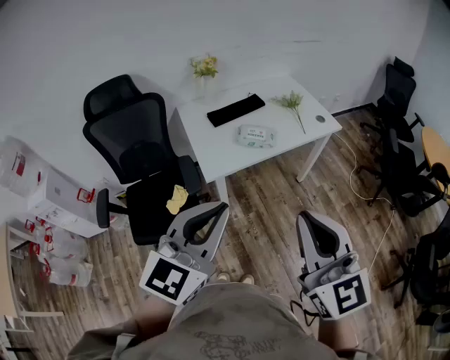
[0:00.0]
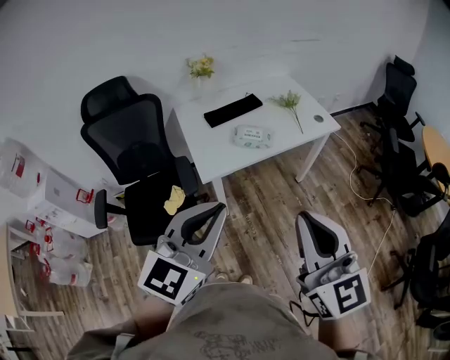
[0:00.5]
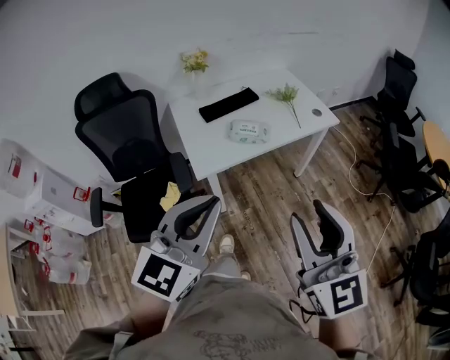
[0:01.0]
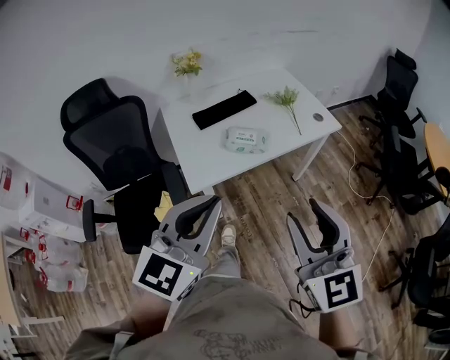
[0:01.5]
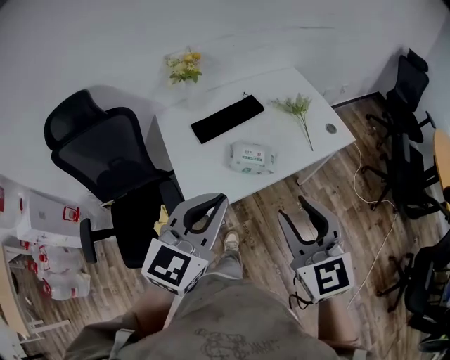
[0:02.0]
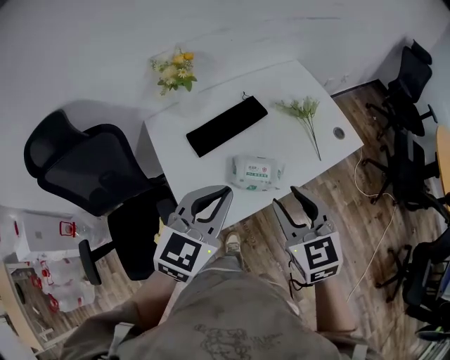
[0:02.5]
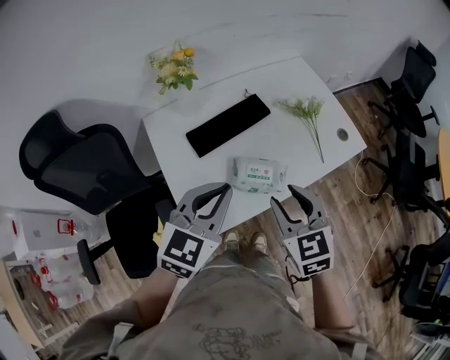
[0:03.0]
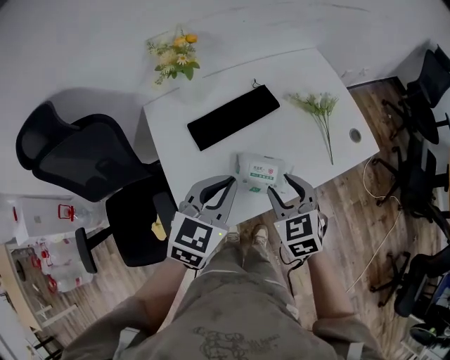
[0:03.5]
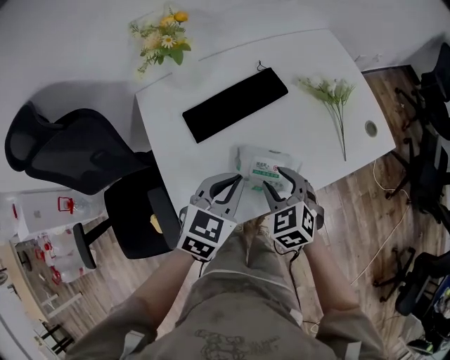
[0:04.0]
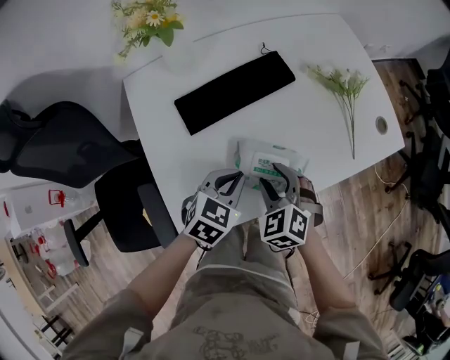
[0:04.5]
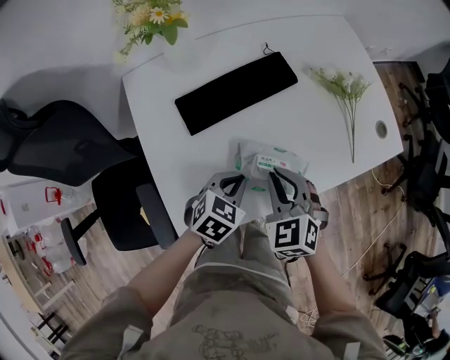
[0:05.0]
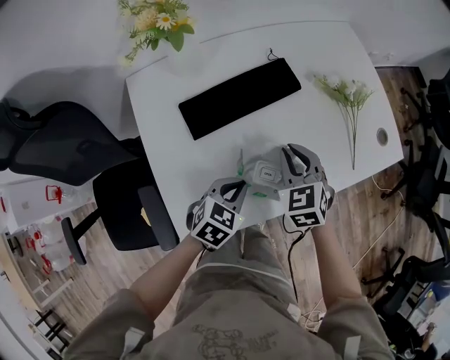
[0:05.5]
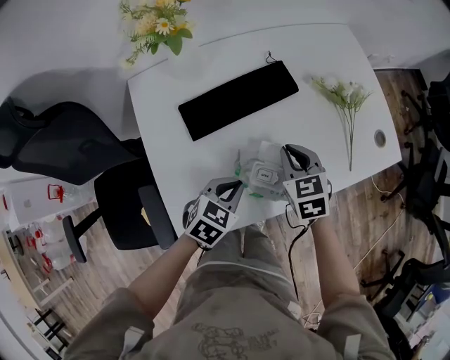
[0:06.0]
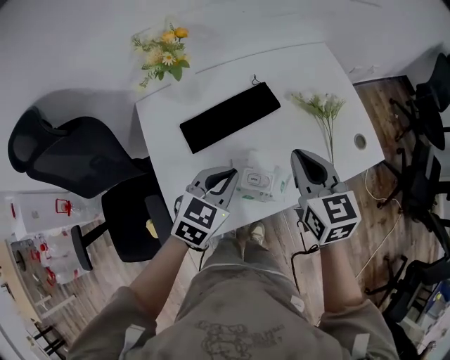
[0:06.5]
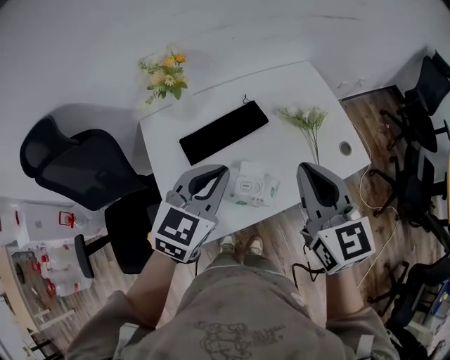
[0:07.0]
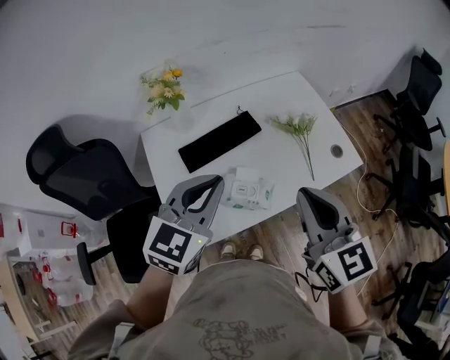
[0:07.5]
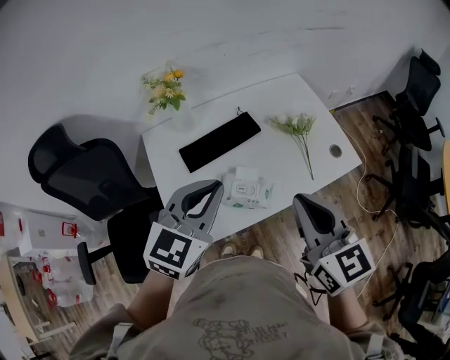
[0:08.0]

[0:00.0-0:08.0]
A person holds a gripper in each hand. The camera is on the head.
0:00.0 to 0:02.0: Both grippers travel together forward, some 25 cm. The right gripper opens.
0:02.0 to 0:04.0: The two grippers go approximately 35 cm downward and forward. The right gripper angles its fingers downward, by roughly 30 degrees. The left gripper rotates about 30 degrees.
0:04.0 to 0:06.0: The left gripper goes about 10 cm downward. The right gripper moves forward, about 10 cm, and closes its fingers.
0:06.0 to 0:08.0: The right gripper travels upward and backward by approximately 35 cm, and tips its fingers upward by some 30 degrees, while the left gripper travels upward by approximately 30 cm, and tips its fingers upward by approximately 30 degrees.

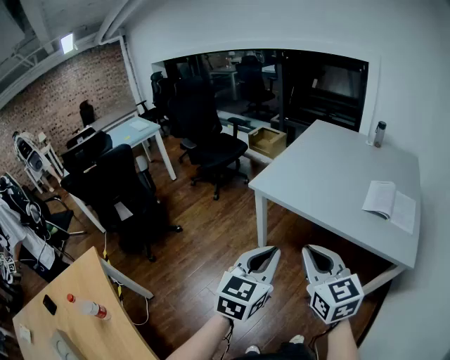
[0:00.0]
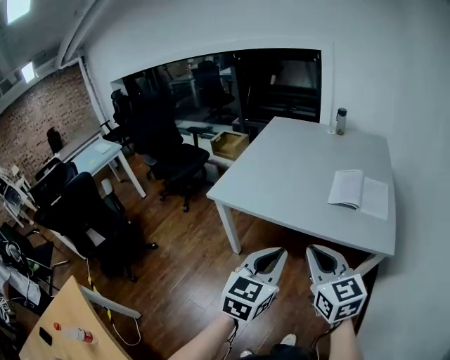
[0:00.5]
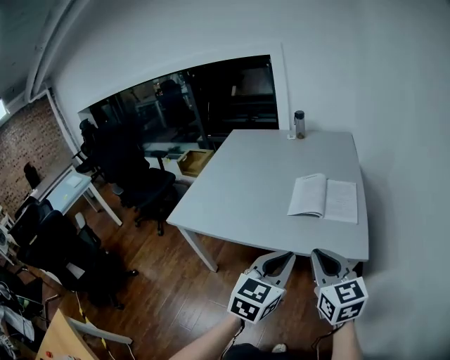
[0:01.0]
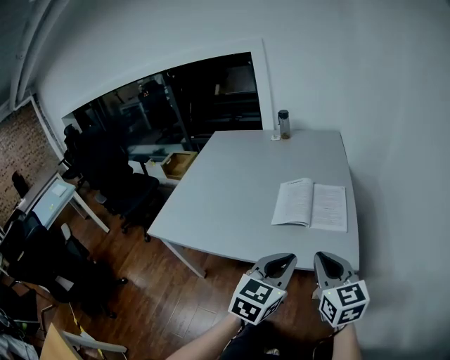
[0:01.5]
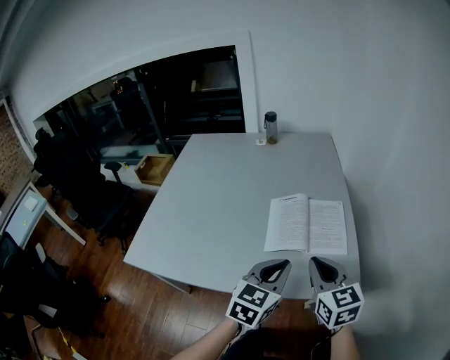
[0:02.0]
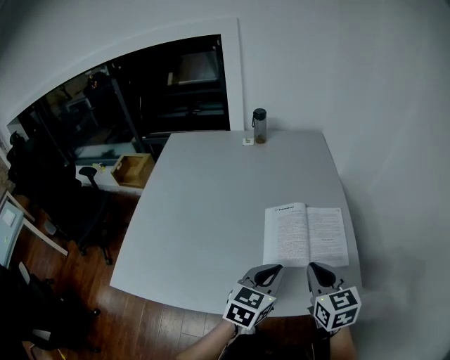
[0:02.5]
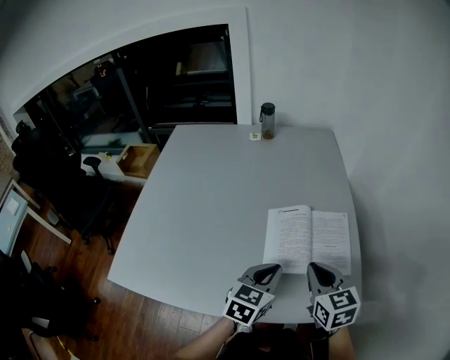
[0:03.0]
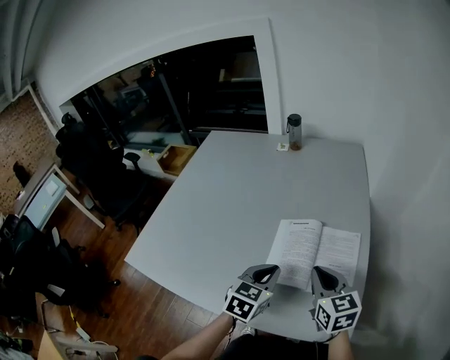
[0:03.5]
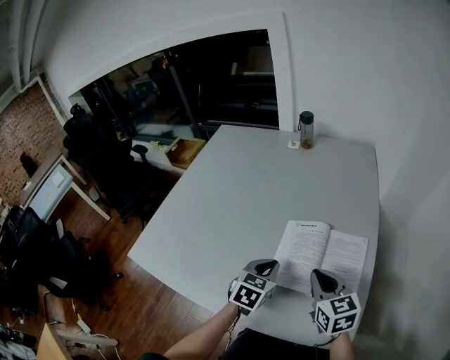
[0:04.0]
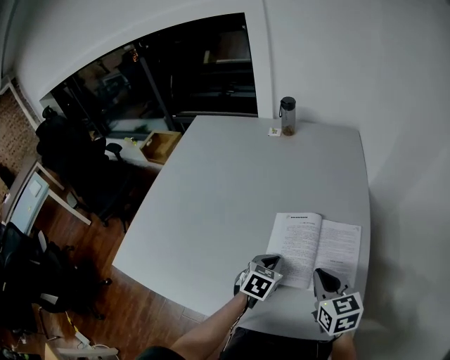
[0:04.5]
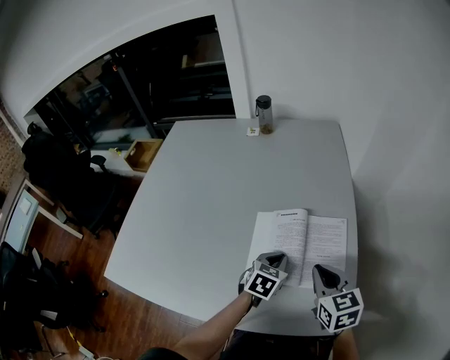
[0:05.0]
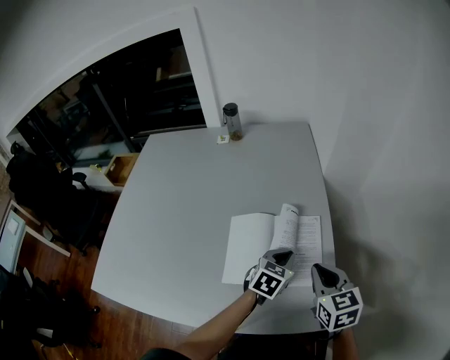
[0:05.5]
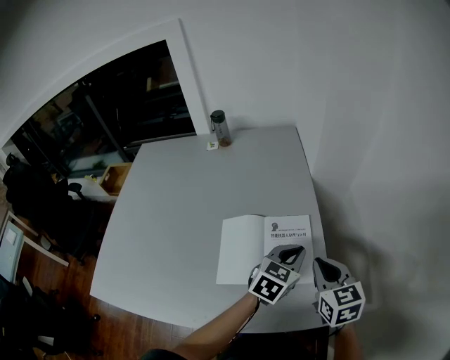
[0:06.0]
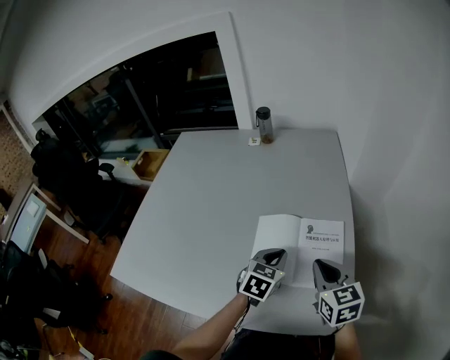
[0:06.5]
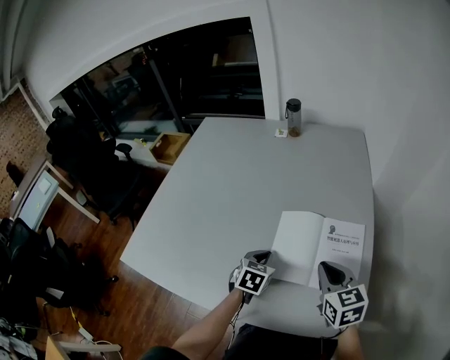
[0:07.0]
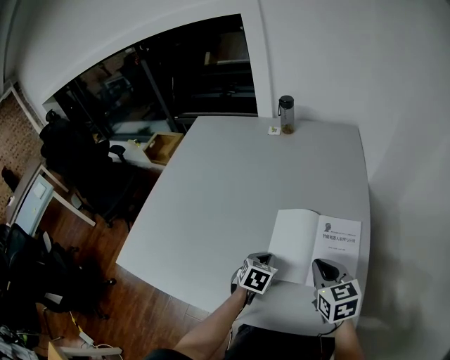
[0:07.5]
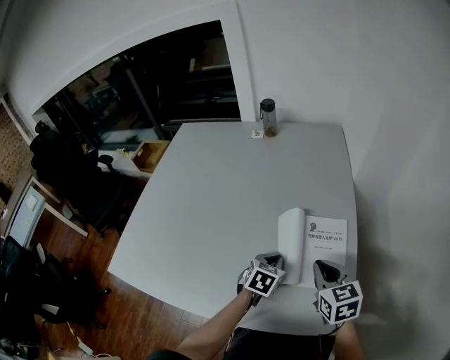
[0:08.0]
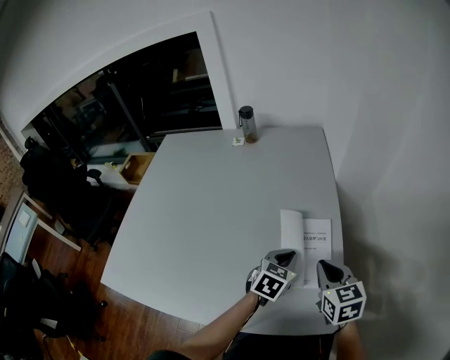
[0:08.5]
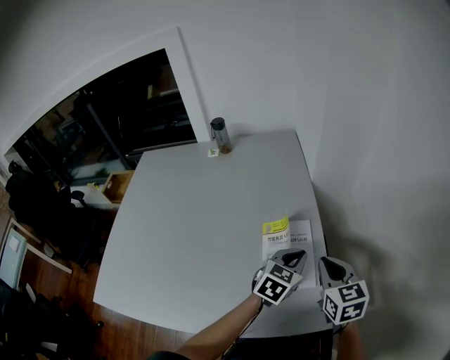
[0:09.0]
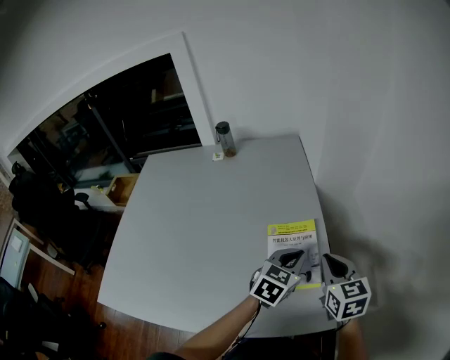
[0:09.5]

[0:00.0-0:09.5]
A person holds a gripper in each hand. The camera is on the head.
0:00.0 to 0:02.0: Both grippers are carried roughly 50 cm. The left gripper rotates approximately 30 degrees. The right gripper rotates about 30 degrees.
0:02.0 to 0:04.0: Both grippers travel together forward and downward, some 20 cm. The left gripper changes its angle by roughly 30 degrees.
0:04.0 to 0:05.5: The left gripper goes about 20 cm to the right, and turns by approximately 20 degrees; the right gripper heads to the right, covering some 15 cm.
0:05.5 to 0:07.5: The right gripper heads to the left, covering about 10 cm. The left gripper heads to the left and downward, covering about 20 cm, and changes its angle by roughly 30 degrees.
0:07.5 to 0:09.5: The left gripper heads to the right and upward, covering approximately 30 cm, and rotates roughly 40 degrees. The right gripper moves to the right, roughly 15 cm, and turns by approximately 20 degrees.

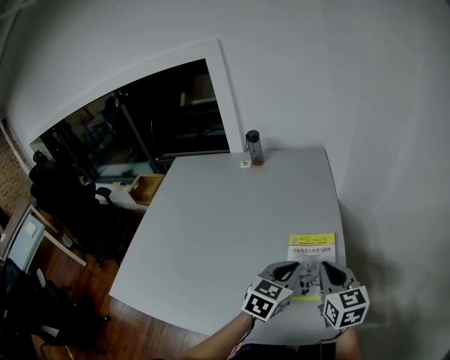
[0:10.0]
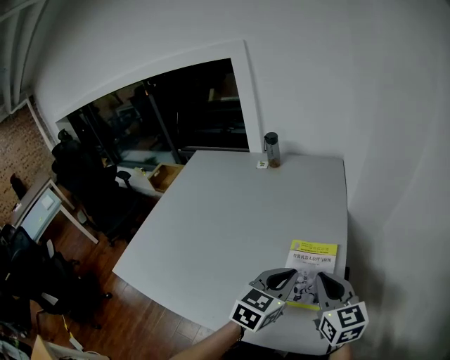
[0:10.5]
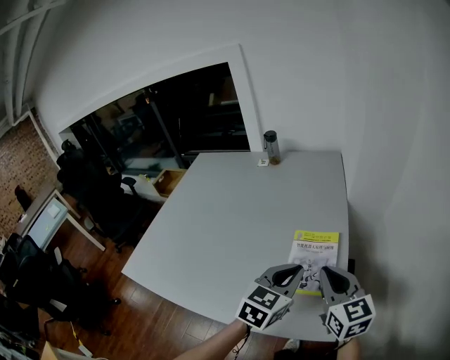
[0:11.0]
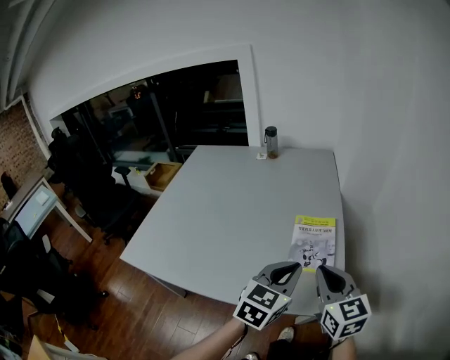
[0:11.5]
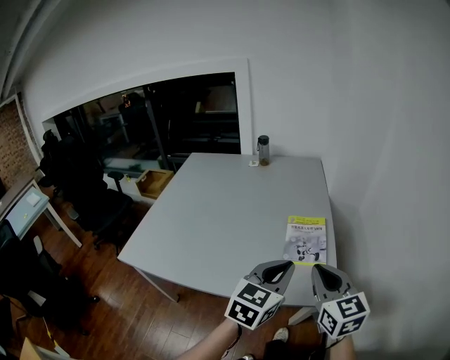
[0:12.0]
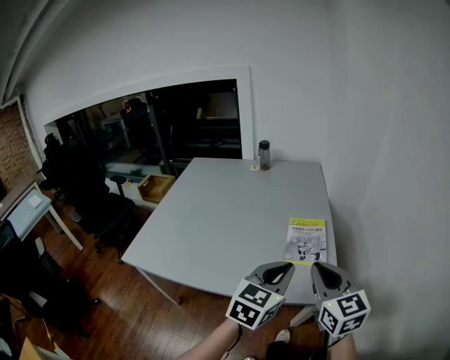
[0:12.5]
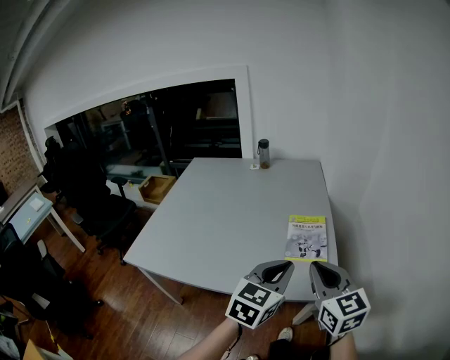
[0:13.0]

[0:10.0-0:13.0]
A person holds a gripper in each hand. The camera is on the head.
0:10.0 to 0:11.5: The left gripper goes about 15 cm backward and upward. The right gripper goes about 15 cm backward.
0:11.5 to 0:13.0: The left gripper goes approximately 10 cm backward. Meanwhile the right gripper moves backward and upward, roughly 10 cm.

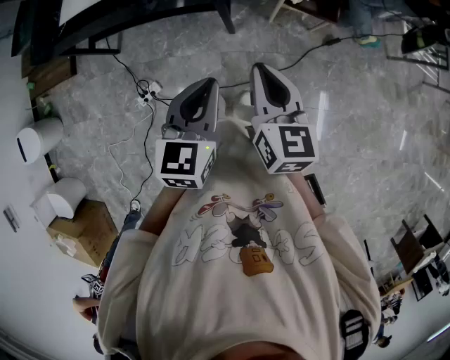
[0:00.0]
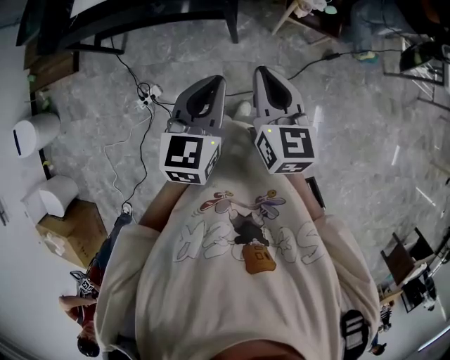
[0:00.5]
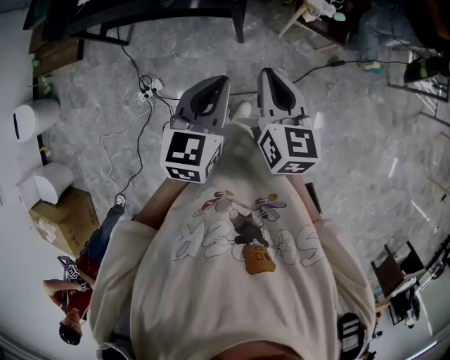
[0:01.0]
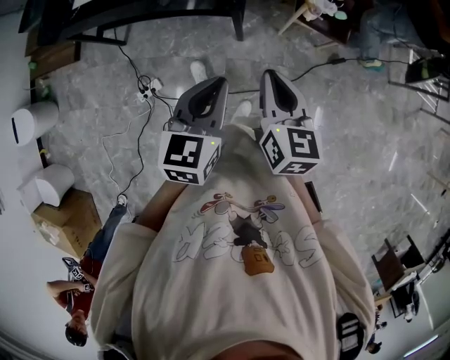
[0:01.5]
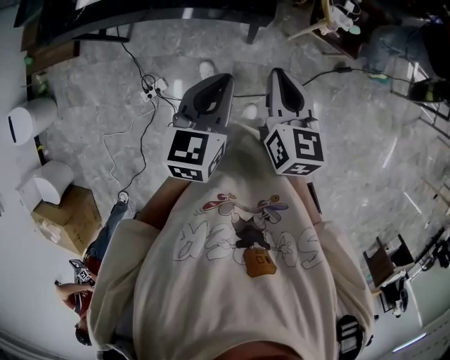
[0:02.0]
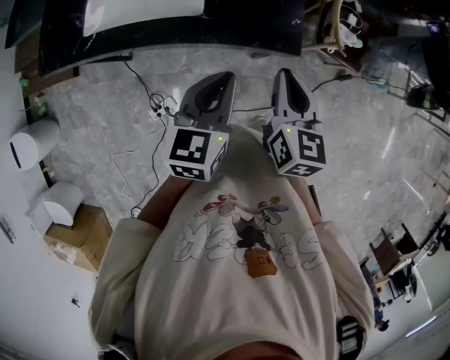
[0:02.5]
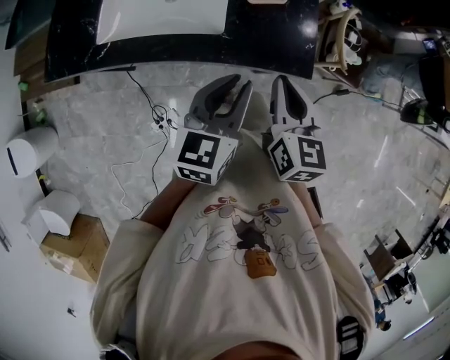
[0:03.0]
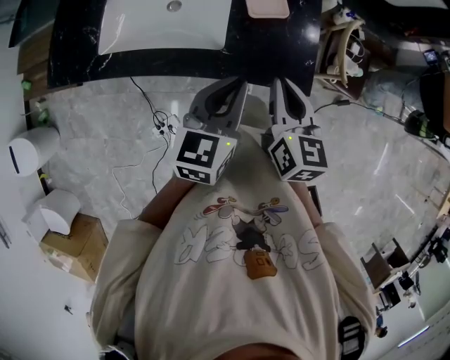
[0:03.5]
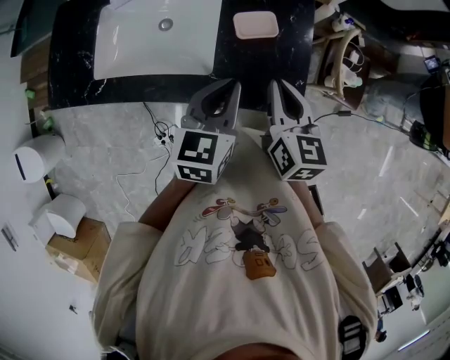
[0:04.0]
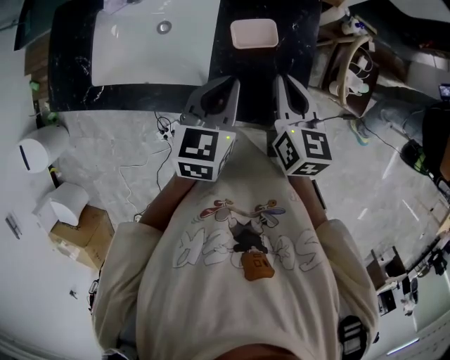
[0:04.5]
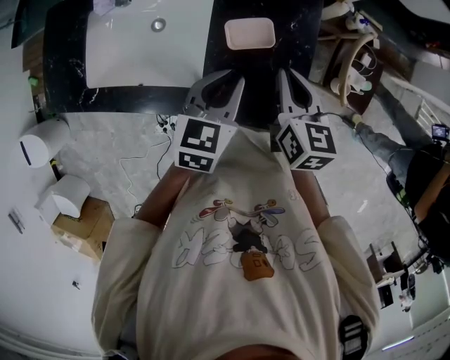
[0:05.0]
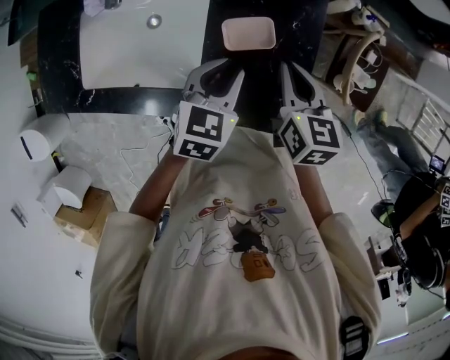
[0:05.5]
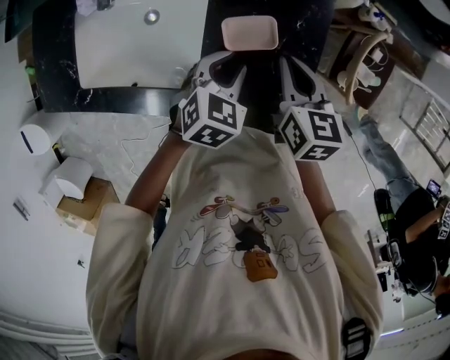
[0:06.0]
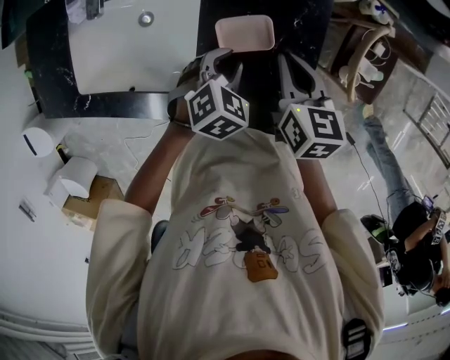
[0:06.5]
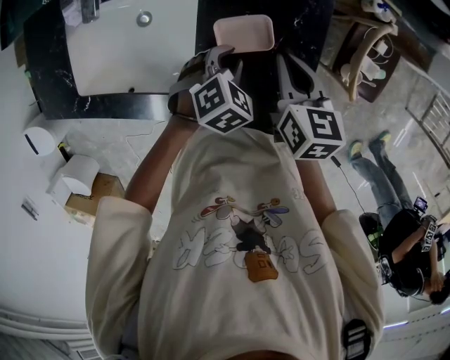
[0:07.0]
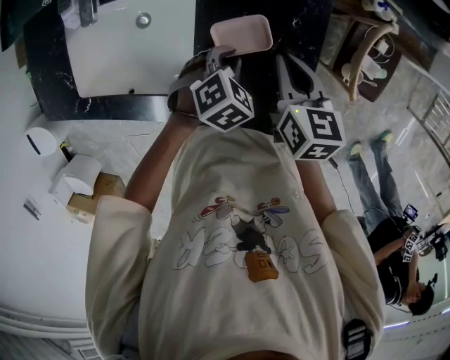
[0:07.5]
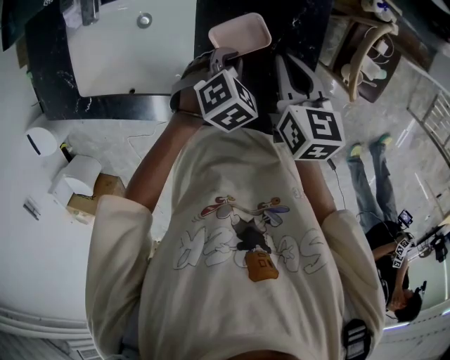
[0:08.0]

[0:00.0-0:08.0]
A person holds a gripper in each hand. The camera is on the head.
0:00.0 to 0:02.0: The two grippers go about 15 cm forward and to the left.
0:02.0 to 0:04.0: The two grippers go roughly 35 cm forward and to the left.
0:04.0 to 0:06.0: The right gripper is displaced forward and downward by approximately 20 cm, while the left gripper travels downward and forward by roughly 20 cm, rotates some 40 degrees, and opens up.
0:06.0 to 0:08.0: The left gripper shifts approximately 5 cm downward, and changes its angle by approximately 20 degrees.
